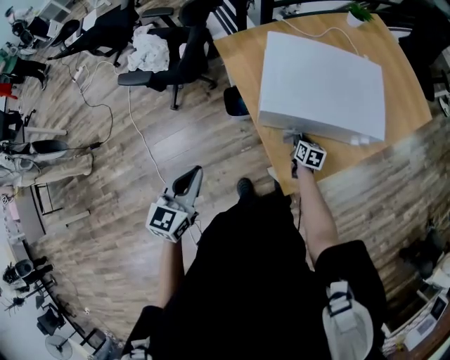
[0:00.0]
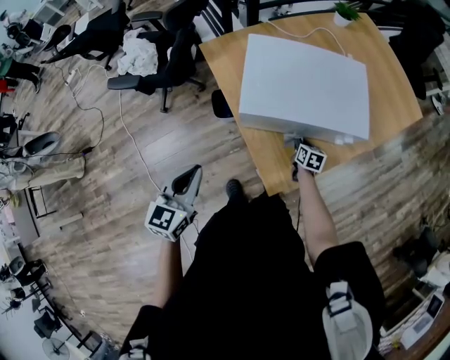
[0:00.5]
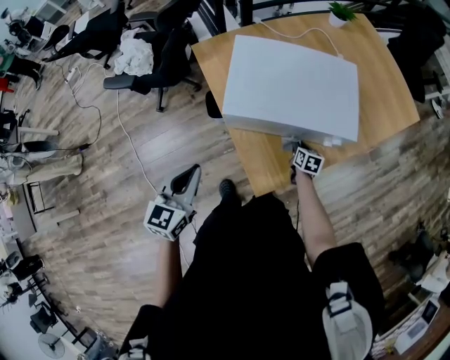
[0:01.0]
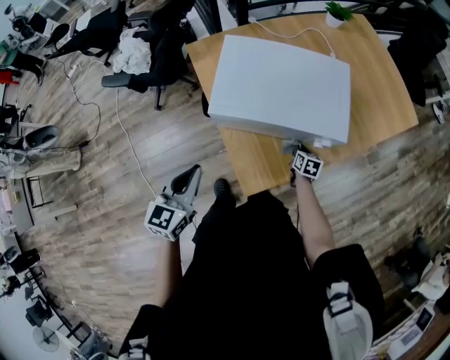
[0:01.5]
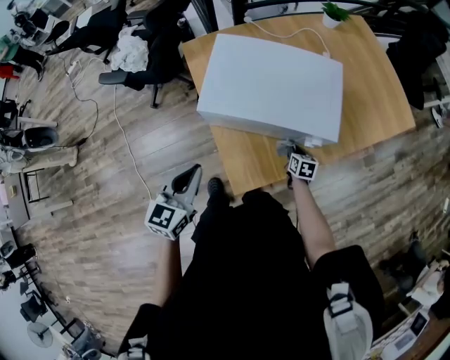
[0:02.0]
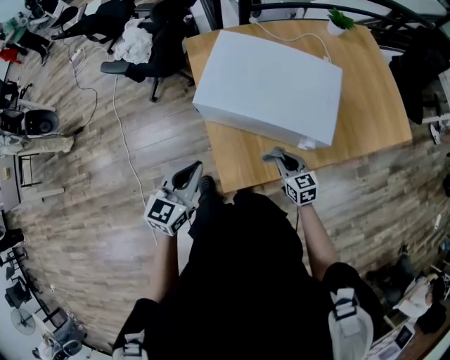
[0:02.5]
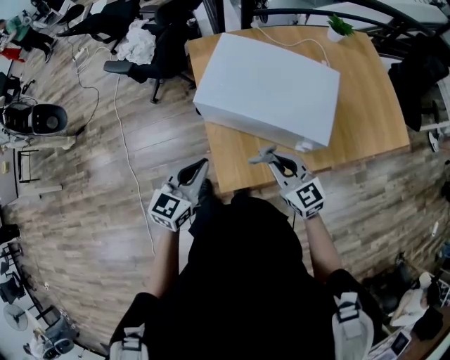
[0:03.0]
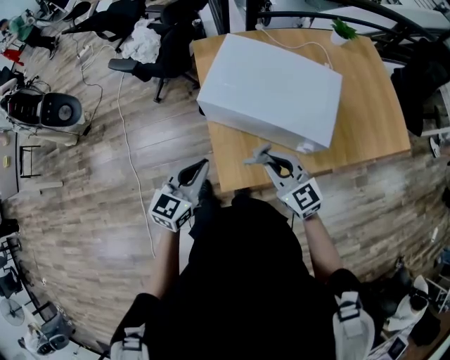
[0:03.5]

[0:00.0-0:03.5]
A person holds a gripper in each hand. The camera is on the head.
0:00.0 to 0:02.0: Both grippers travel together to the right, approximately 20 cm.
0:02.0 to 0:03.5: The left gripper ends up some 5 cm from where it was. Meanwhile the right gripper goes about 30 cm upward and to the left, and turns by about 60 degrees.

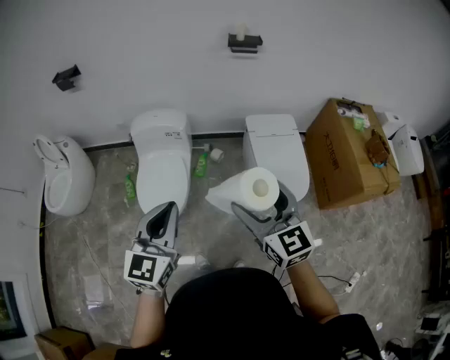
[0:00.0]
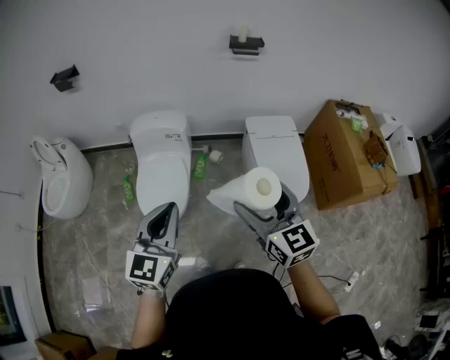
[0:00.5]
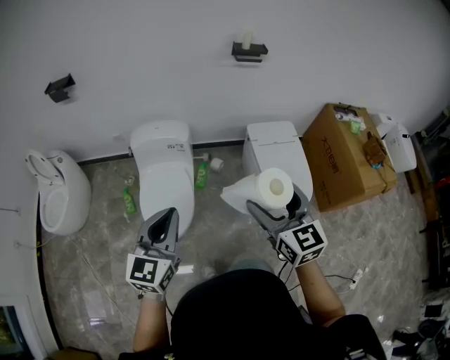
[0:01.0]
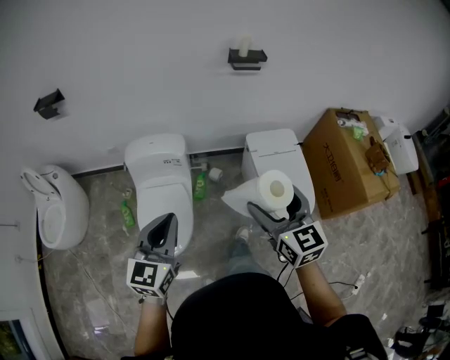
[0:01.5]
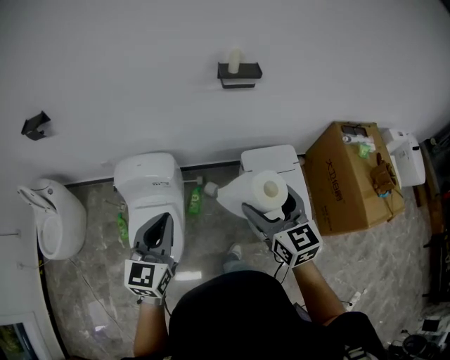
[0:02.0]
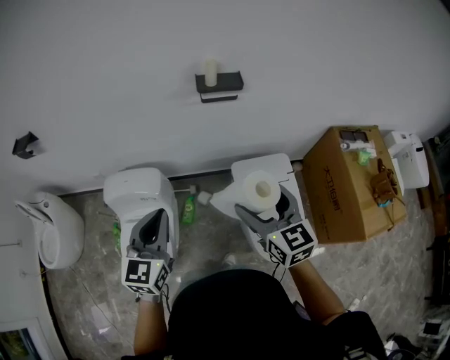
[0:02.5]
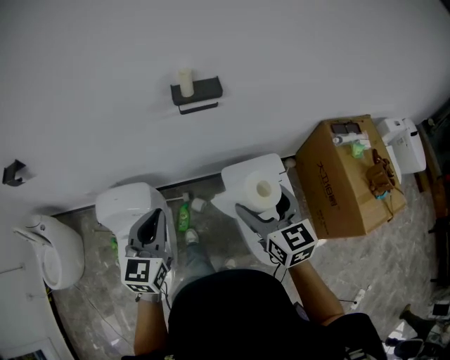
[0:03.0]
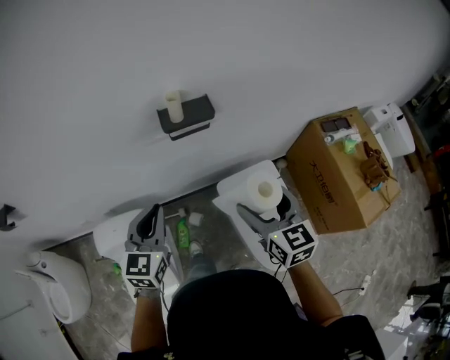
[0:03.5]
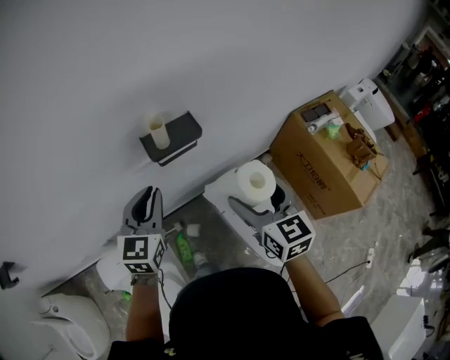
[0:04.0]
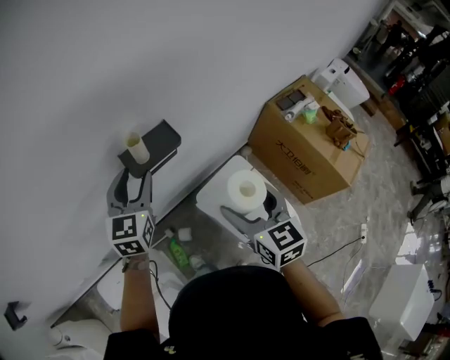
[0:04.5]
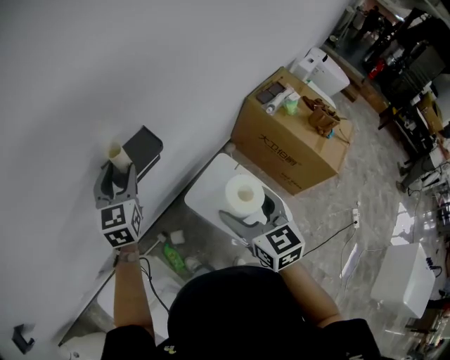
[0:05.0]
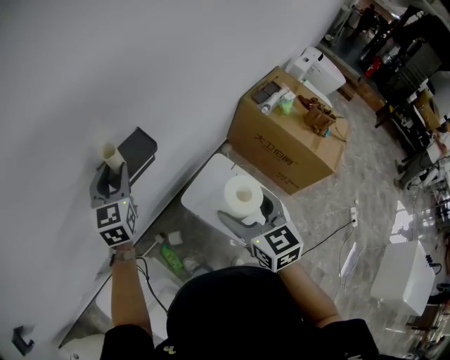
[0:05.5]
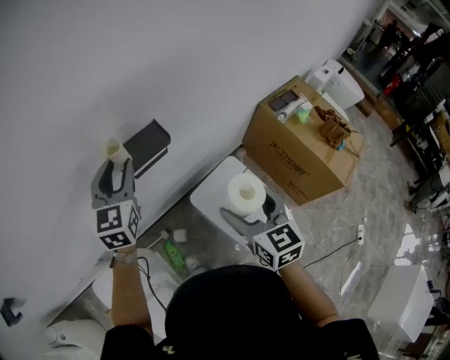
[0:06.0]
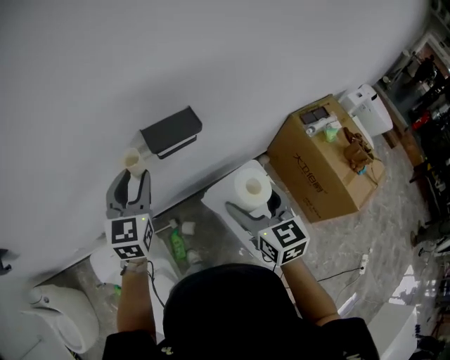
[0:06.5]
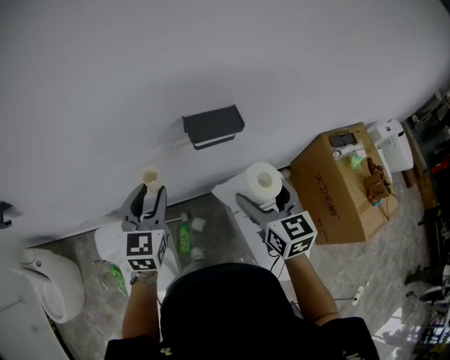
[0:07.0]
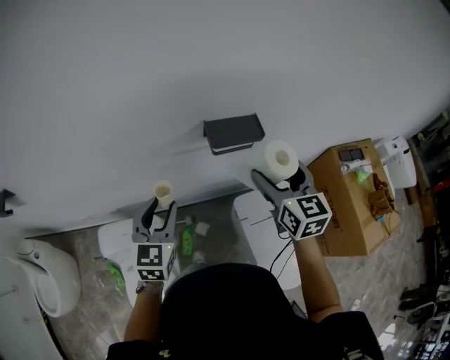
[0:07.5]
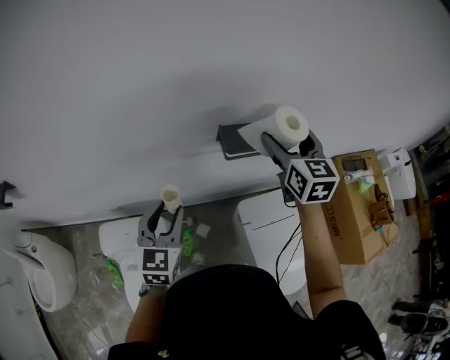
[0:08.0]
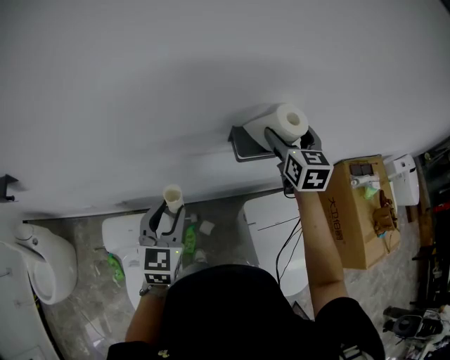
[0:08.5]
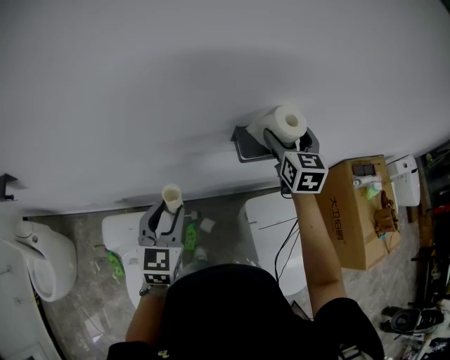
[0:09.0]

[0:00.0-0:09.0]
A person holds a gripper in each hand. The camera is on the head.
0:00.0 to 0:02.0: The two grippers go roughly 30 cm forward.
0:02.0 to 0:04.5: The right gripper changes place by roughly 30 cm, and turns by approximately 30 degrees, while the left gripper ends up roughly 60 cm from where it was, rotates some 20 degrees, and opens its fingers.
0:04.5 to 0:07.0: The left gripper travels backward and to the left by about 20 cm, while the right gripper shifts approximately 5 cm to the left.
0:07.0 to 0:09.0: The right gripper shifts approximately 25 cm forward. The left gripper is displaced to the left and downward by some 10 cm.

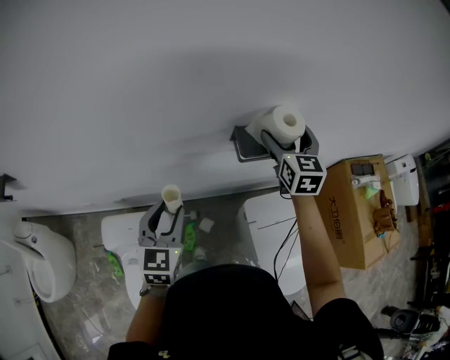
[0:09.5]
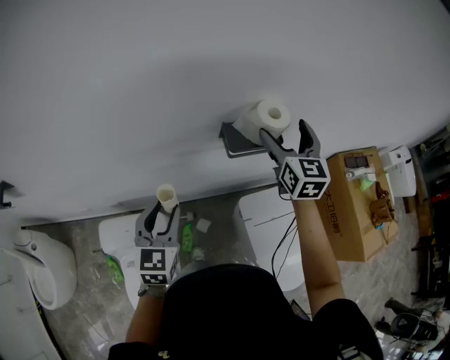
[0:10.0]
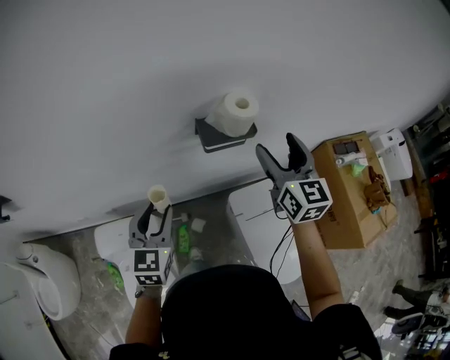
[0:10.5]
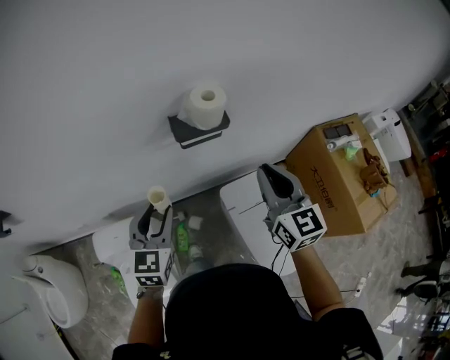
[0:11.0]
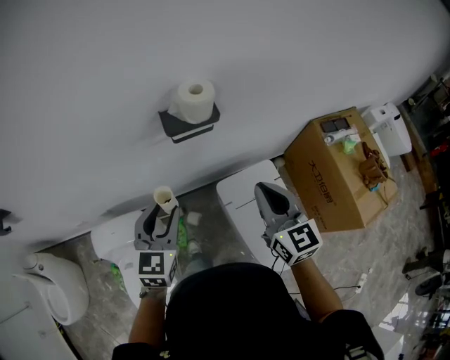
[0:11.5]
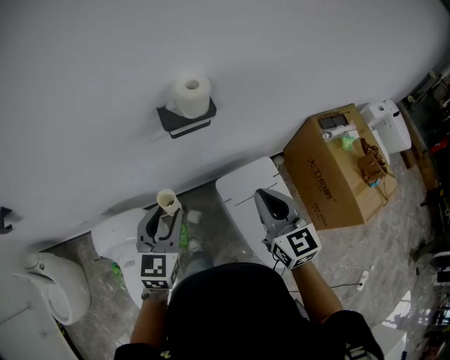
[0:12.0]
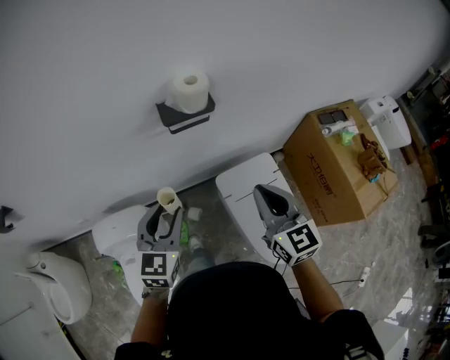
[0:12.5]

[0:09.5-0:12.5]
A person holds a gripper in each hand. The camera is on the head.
0:09.5 to 0:11.0: The left gripper shifts about 10 cm to the right. The right gripper heads backward and to the right, covering about 25 cm, and closes up.
0:11.0 to 0:12.5: The right gripper moves backward, roughly 10 cm; the left gripper is displaced backward and to the right by some 10 cm.

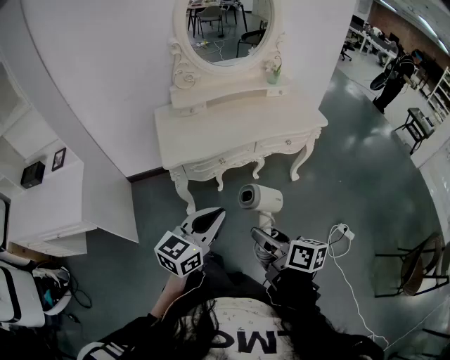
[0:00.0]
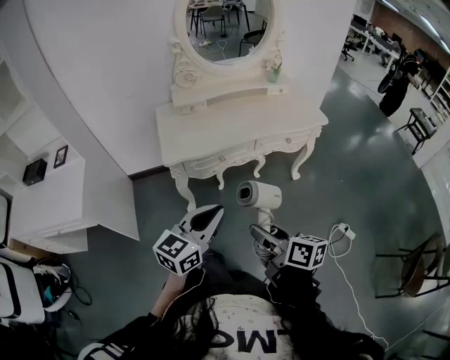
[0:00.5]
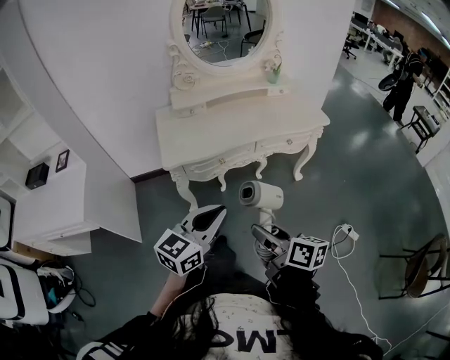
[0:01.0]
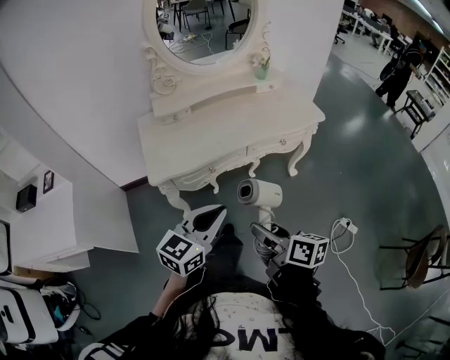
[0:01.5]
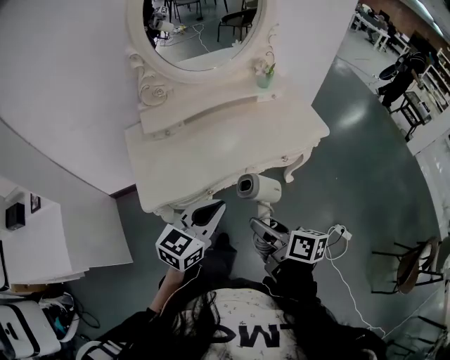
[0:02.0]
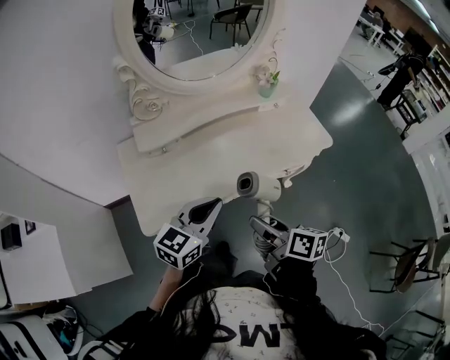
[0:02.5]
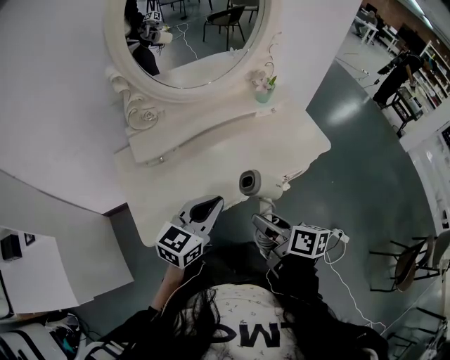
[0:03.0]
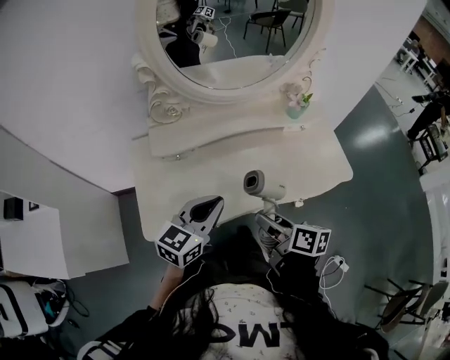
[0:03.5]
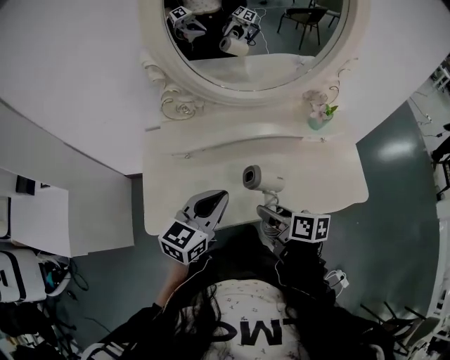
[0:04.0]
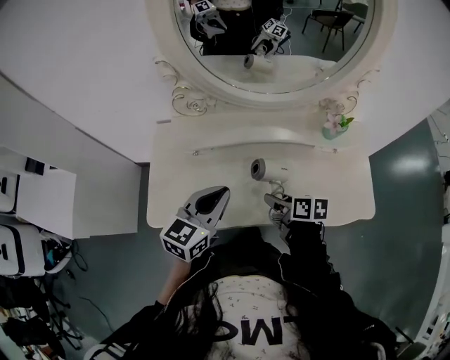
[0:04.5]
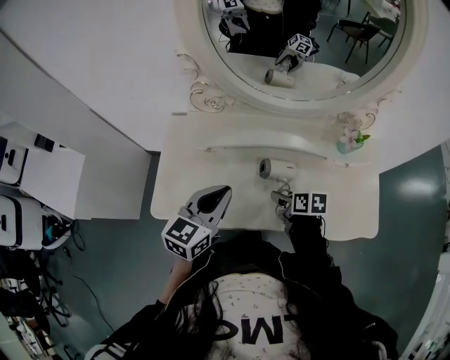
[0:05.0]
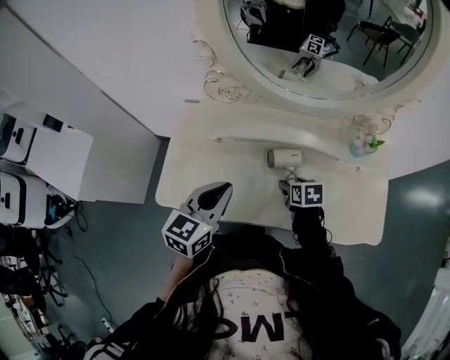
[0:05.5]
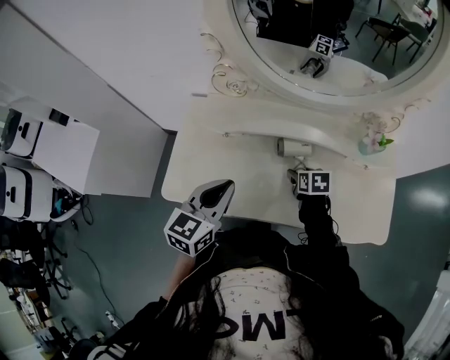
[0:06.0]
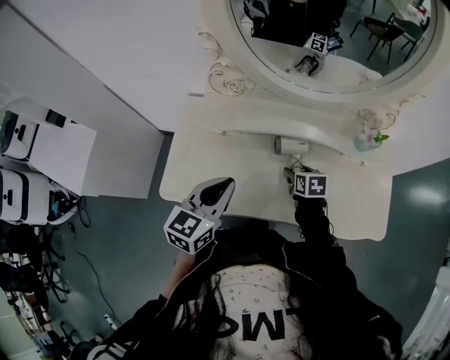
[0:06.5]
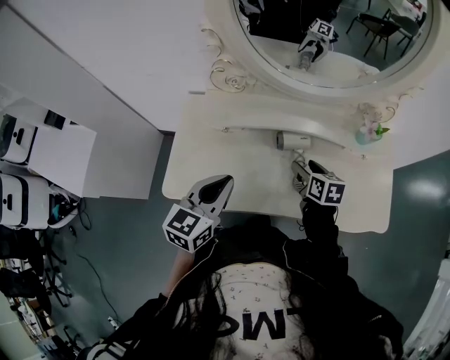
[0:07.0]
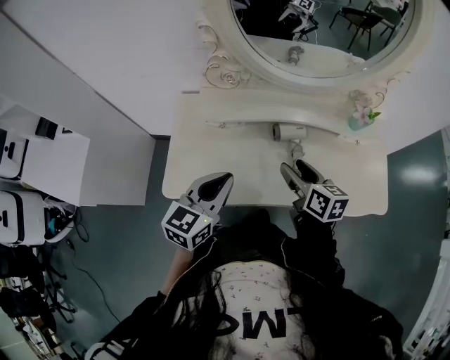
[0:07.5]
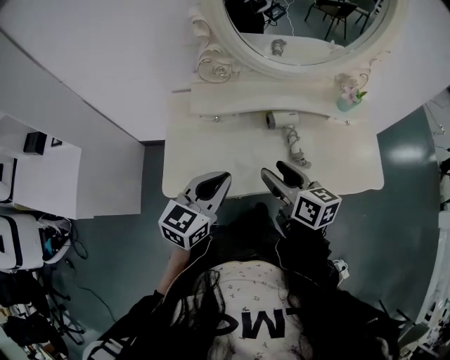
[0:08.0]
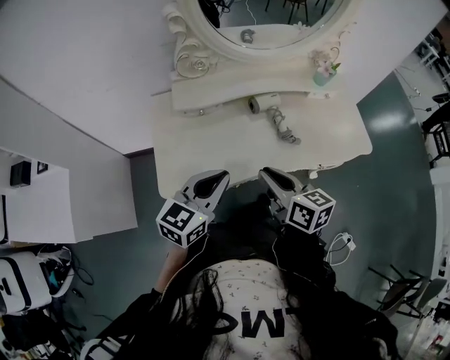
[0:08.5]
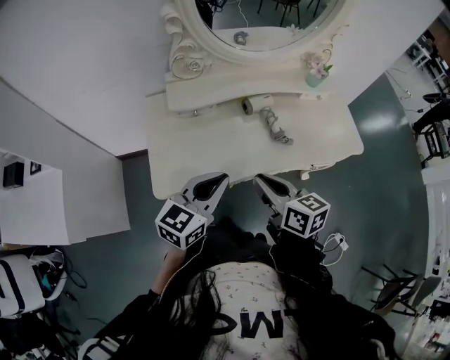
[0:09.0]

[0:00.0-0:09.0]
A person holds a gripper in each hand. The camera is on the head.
0:00.0 to 0:02.0: The two grippers go approximately 20 cm forward.
0:02.0 to 0:04.5: The right gripper shifts by some 35 cm, and swivels some 30 degrees; the left gripper changes place by some 25 cm, and swivels roughly 30 degrees.
0:04.5 to 0:07.0: The right gripper moves forward, some 10 cm, and changes its angle by approximately 20 degrees; the left gripper goes approximately 5 cm to the left.
0:07.0 to 0:09.0: The left gripper is displaced backward by about 10 cm, and swivels about 30 degrees; the right gripper travels backward, upward and to the left by about 30 cm, and closes up.

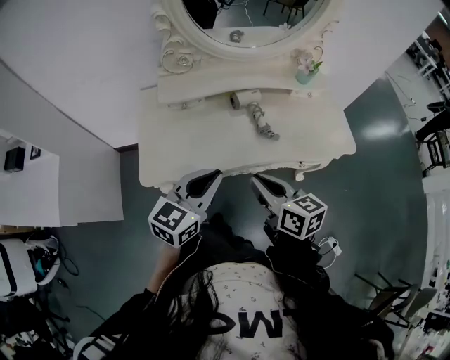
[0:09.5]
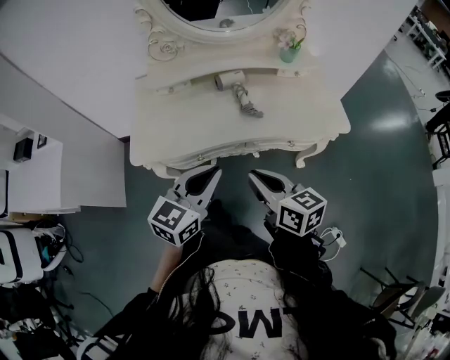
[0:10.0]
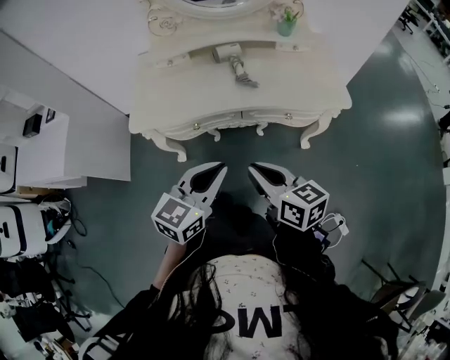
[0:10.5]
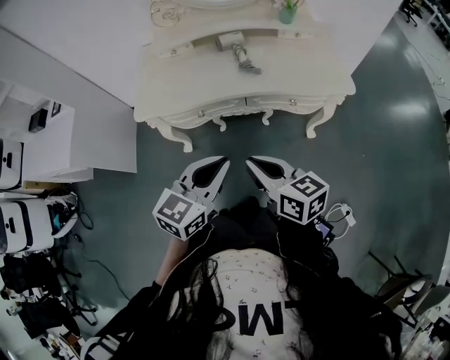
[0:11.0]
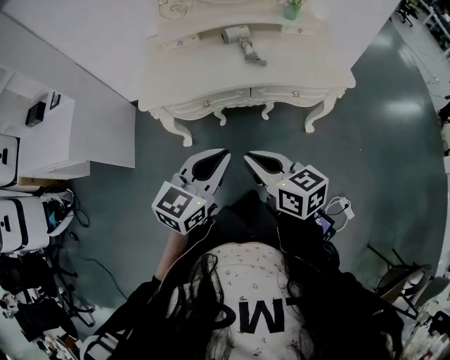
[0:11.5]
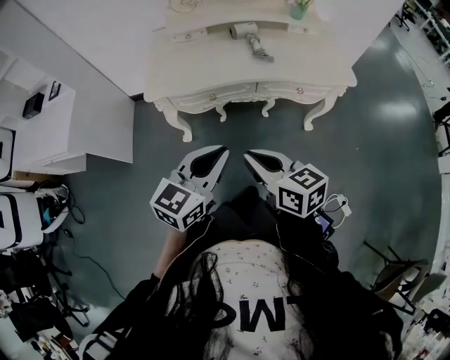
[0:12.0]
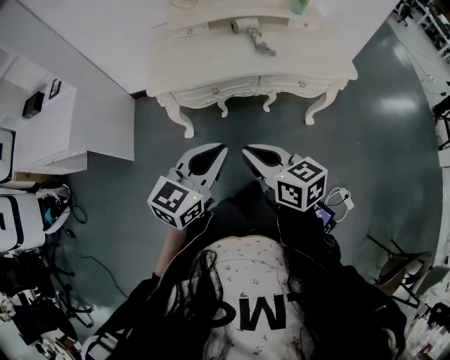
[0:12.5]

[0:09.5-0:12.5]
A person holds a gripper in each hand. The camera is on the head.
0:09.5 to 0:11.0: The two grippers go roughly 20 cm backward and to the right.
0:11.0 to 0:12.5: Both grippers move to the left and backward, roughly 10 cm.
